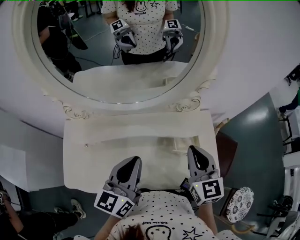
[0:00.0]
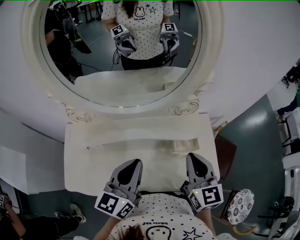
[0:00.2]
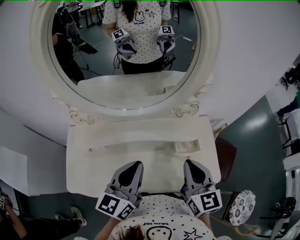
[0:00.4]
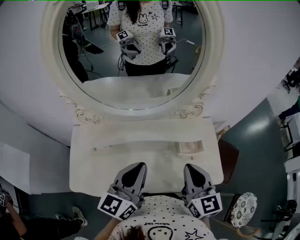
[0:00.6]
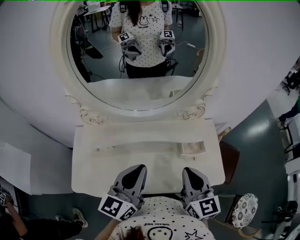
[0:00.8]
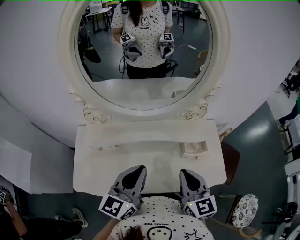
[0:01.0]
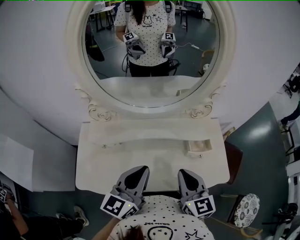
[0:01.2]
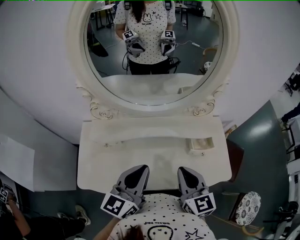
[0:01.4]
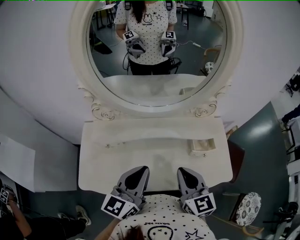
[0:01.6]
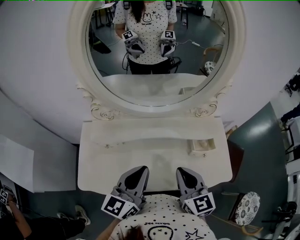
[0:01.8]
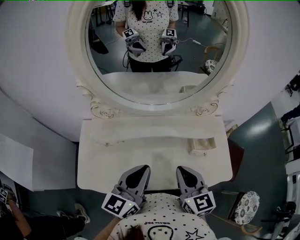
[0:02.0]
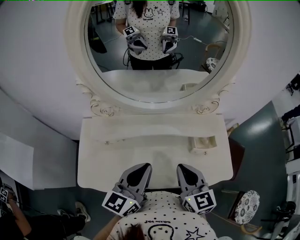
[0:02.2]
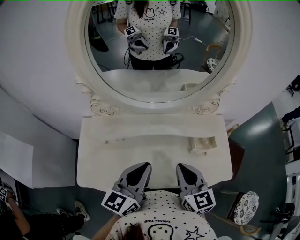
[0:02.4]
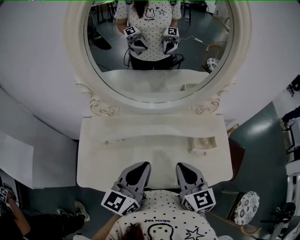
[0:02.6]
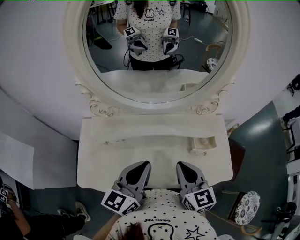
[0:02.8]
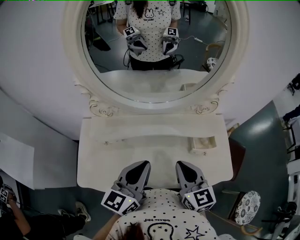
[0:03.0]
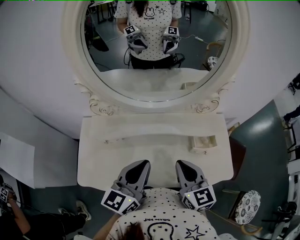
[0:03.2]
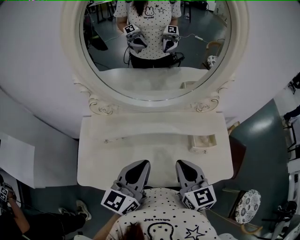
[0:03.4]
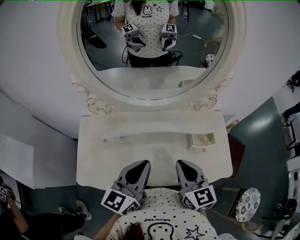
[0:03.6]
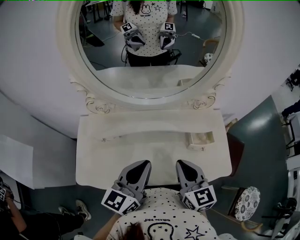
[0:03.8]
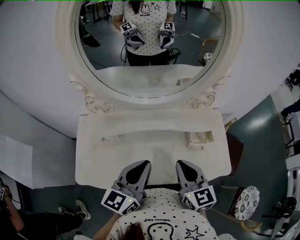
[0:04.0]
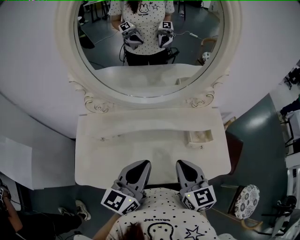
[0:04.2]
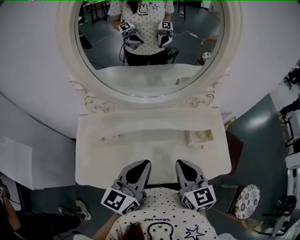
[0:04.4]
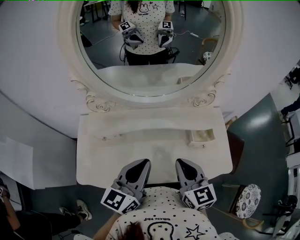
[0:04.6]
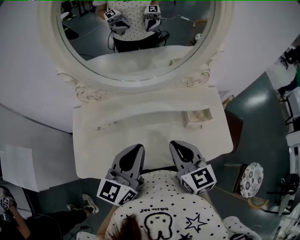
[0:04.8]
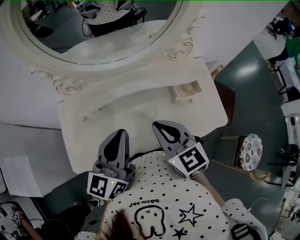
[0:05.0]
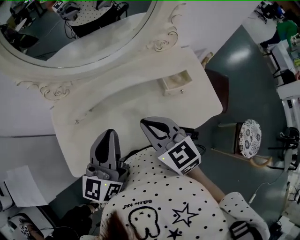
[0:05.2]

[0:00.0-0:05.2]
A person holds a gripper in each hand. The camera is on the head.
0:00.0 to 0:01.8: The left gripper goes about 10 cm to the left and backward; the right gripper heads to the left and backward, covering some 15 cm.
0:01.8 to 0:05.2: The grippers move only a little.

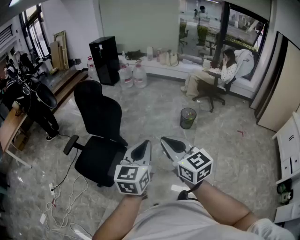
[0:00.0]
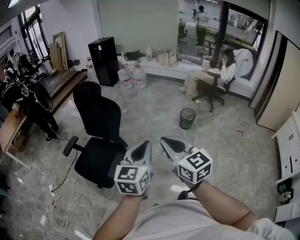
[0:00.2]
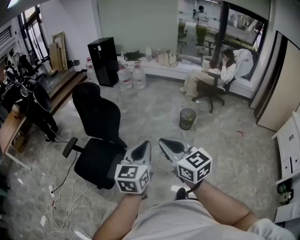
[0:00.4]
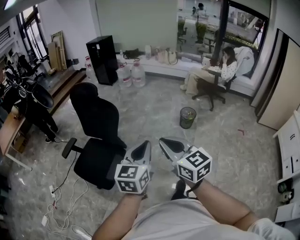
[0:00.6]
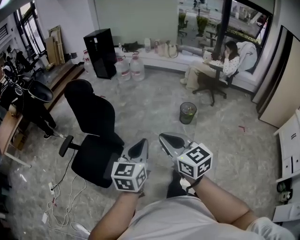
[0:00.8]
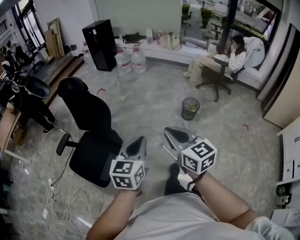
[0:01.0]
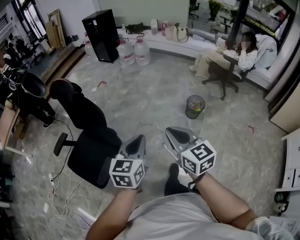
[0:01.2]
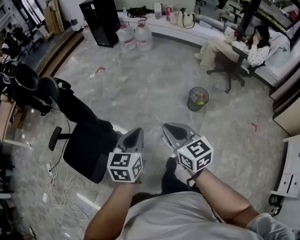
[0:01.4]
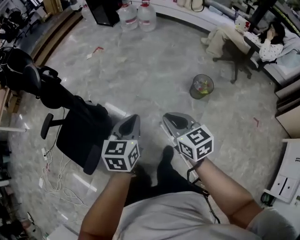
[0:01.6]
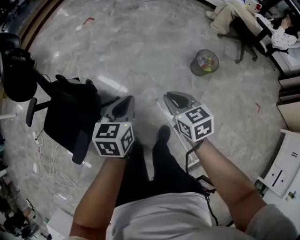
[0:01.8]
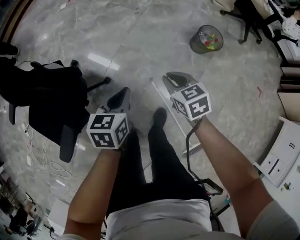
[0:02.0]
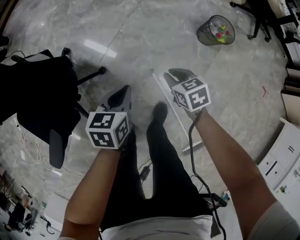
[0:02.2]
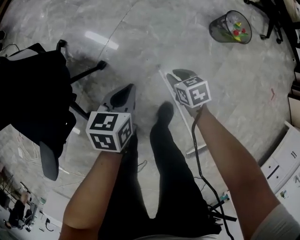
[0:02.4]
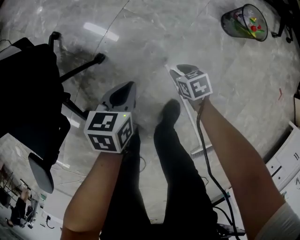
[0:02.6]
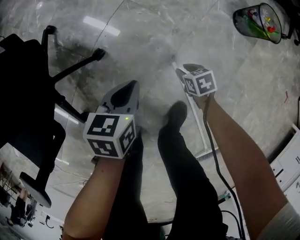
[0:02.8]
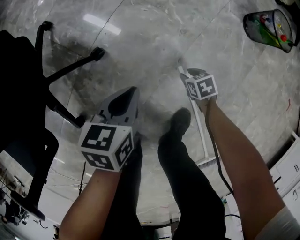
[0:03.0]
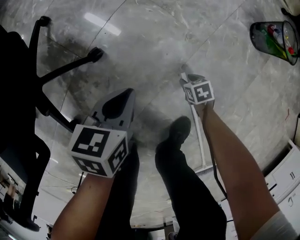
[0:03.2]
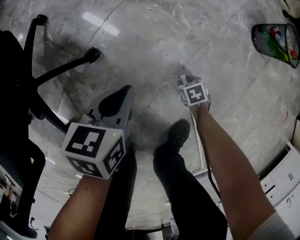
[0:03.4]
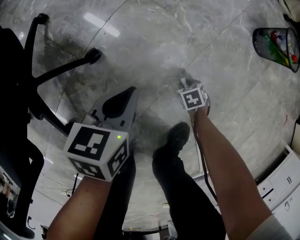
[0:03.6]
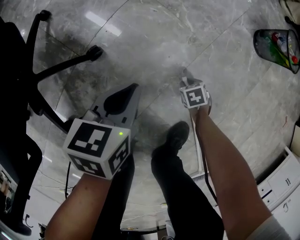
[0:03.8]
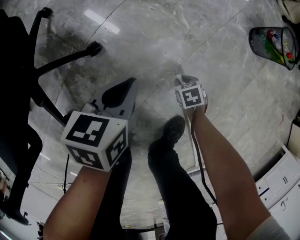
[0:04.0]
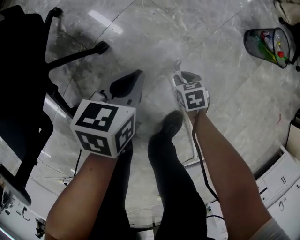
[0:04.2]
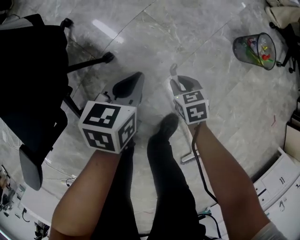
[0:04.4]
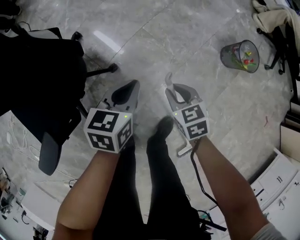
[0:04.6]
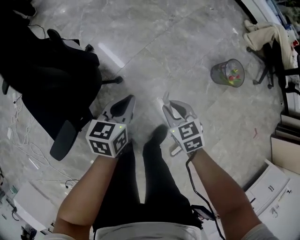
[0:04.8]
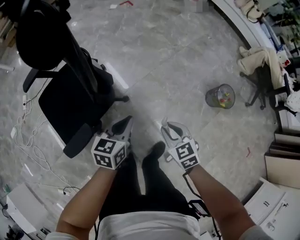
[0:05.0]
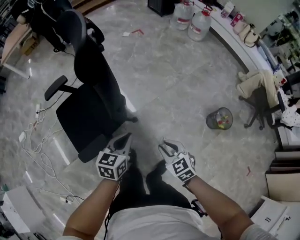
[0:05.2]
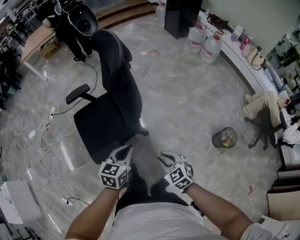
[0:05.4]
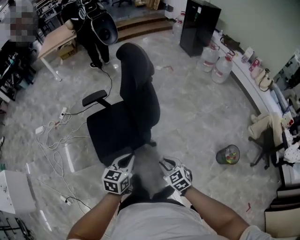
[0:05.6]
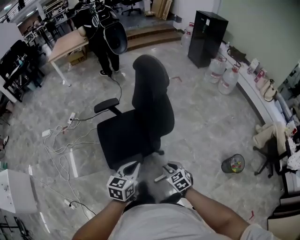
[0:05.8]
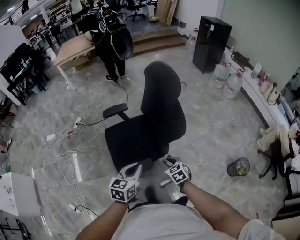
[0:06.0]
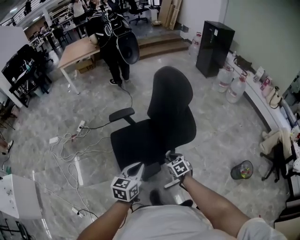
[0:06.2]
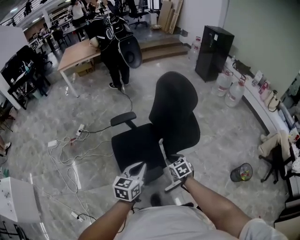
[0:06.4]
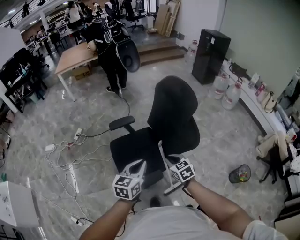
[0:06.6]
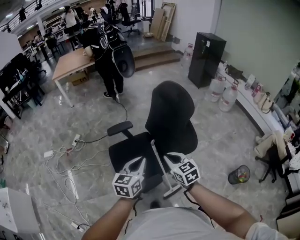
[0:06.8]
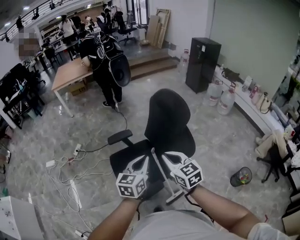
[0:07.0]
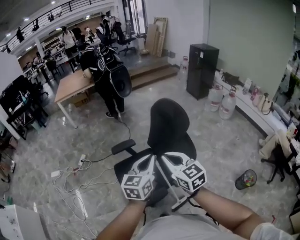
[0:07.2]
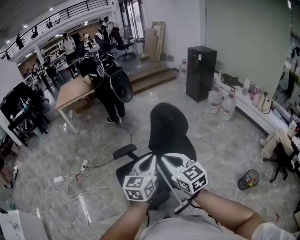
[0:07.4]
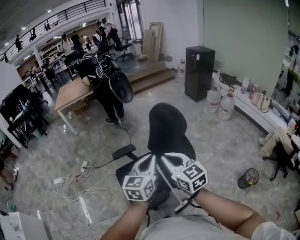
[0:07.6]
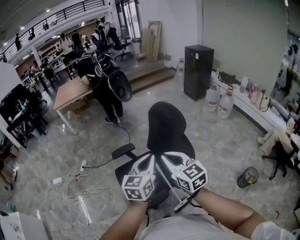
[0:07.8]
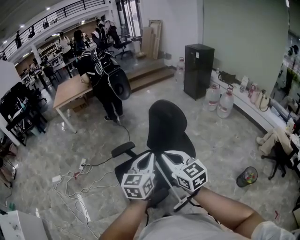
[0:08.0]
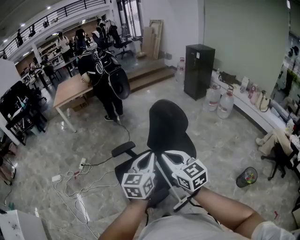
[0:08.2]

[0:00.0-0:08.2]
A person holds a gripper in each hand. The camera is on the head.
0:00.0 to 0:01.6: The two grippers travel together, forward and to the right, roughly 50 cm. The two grippers go approximately 25 cm downward. The left gripper turns by roughly 30 degrees; the right gripper changes its angle by approximately 20 degrees.
0:01.6 to 0:03.2: The two grippers go approximately 90 cm downward. The left gripper rotates about 30 degrees, while the right gripper points its fingers roughly 50 degrees further downward, and opens its fingers.
0:03.2 to 0:05.0: The grippers both shift upward by about 60 cm. The right gripper rotates about 40 degrees.
0:05.0 to 0:06.6: Both grippers move to the left and upward, roughly 50 cm. The left gripper turns by roughly 30 degrees.
0:06.6 to 0:08.2: The right gripper travels upward by roughly 30 cm, and swivels some 30 degrees. Meanwhile the left gripper moves upward and forward, some 15 cm.

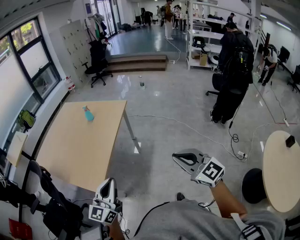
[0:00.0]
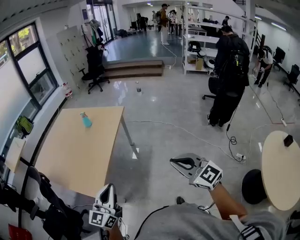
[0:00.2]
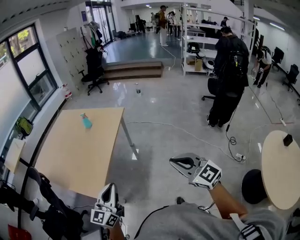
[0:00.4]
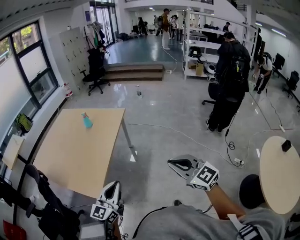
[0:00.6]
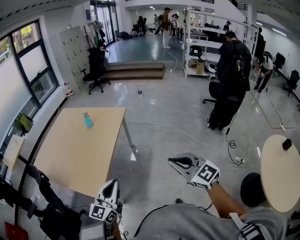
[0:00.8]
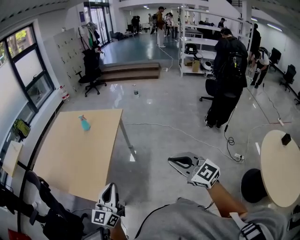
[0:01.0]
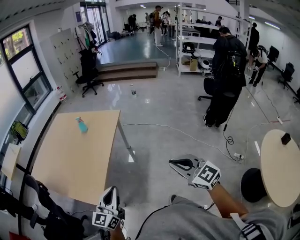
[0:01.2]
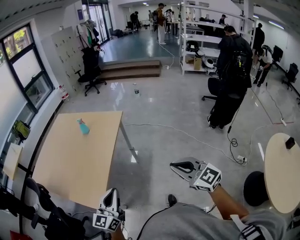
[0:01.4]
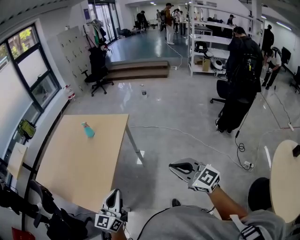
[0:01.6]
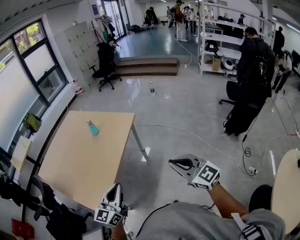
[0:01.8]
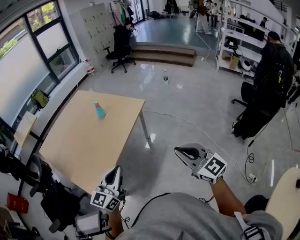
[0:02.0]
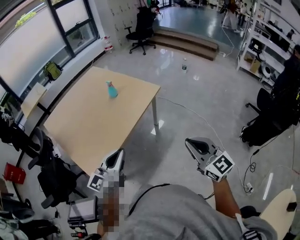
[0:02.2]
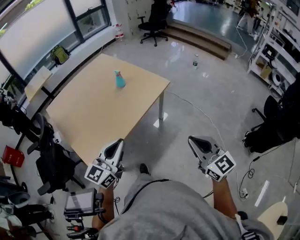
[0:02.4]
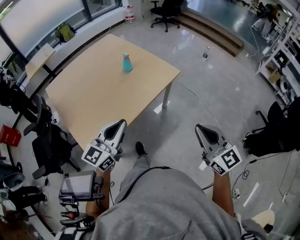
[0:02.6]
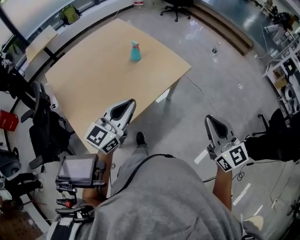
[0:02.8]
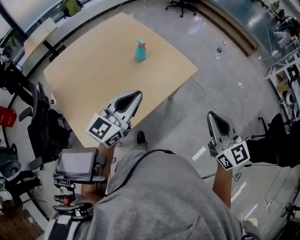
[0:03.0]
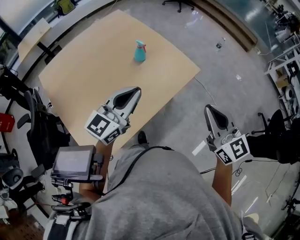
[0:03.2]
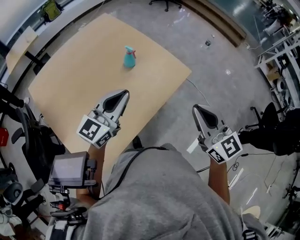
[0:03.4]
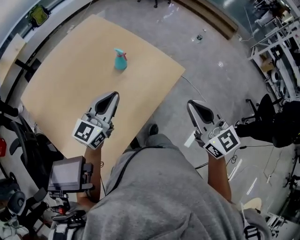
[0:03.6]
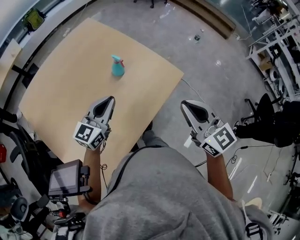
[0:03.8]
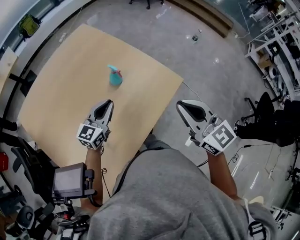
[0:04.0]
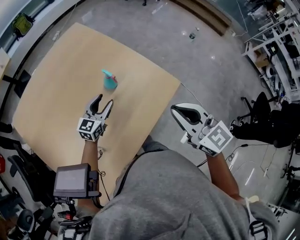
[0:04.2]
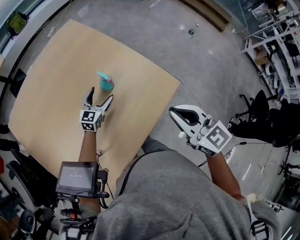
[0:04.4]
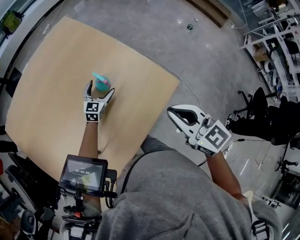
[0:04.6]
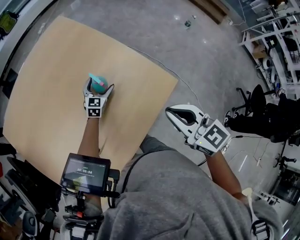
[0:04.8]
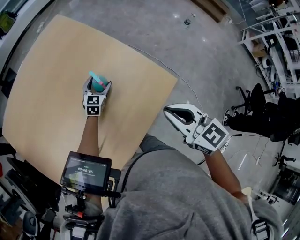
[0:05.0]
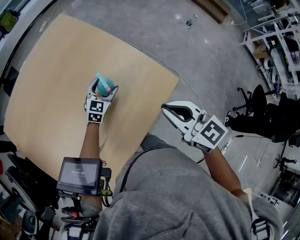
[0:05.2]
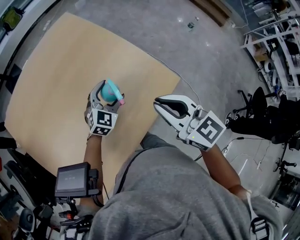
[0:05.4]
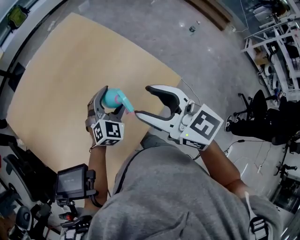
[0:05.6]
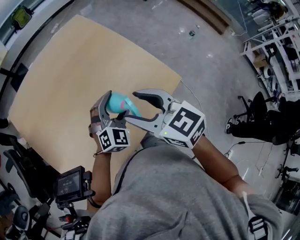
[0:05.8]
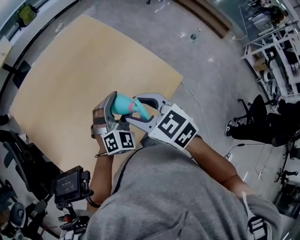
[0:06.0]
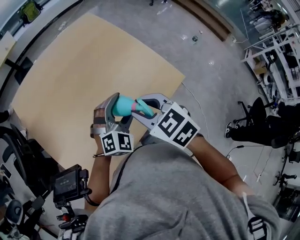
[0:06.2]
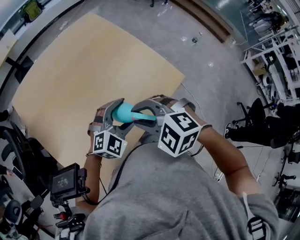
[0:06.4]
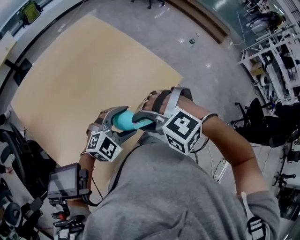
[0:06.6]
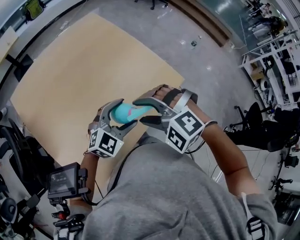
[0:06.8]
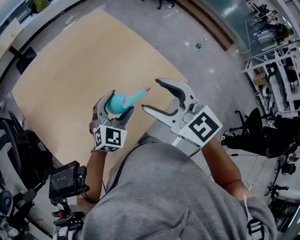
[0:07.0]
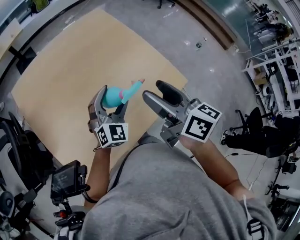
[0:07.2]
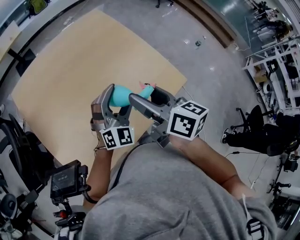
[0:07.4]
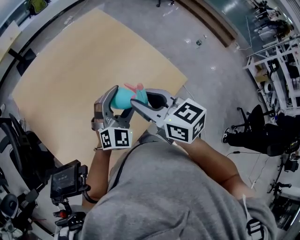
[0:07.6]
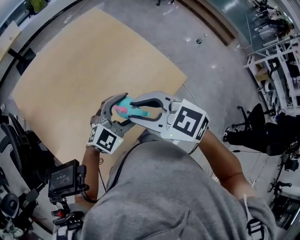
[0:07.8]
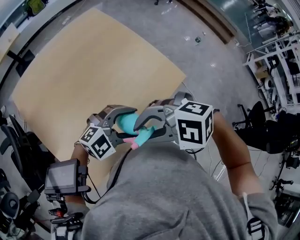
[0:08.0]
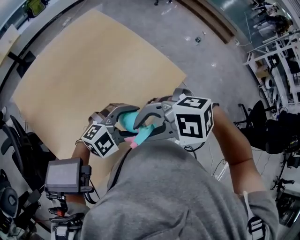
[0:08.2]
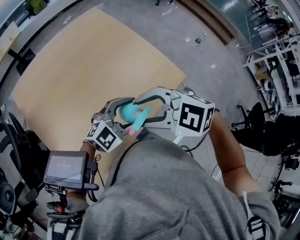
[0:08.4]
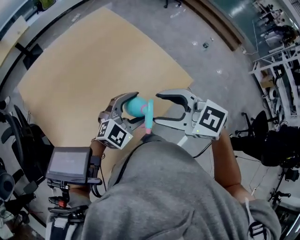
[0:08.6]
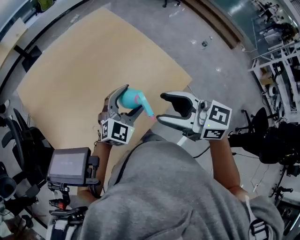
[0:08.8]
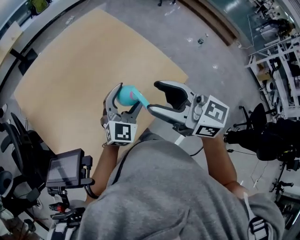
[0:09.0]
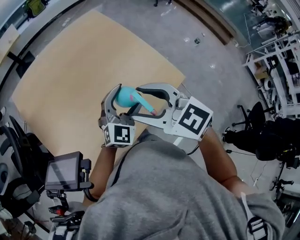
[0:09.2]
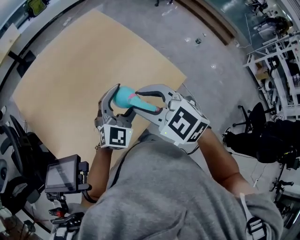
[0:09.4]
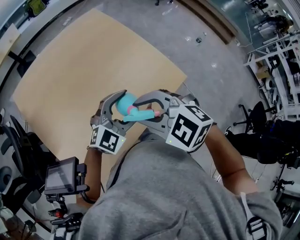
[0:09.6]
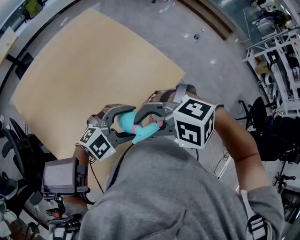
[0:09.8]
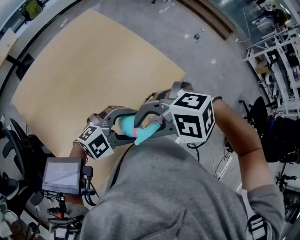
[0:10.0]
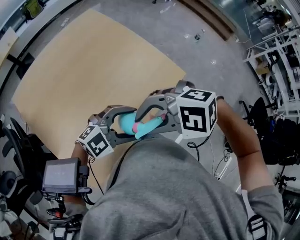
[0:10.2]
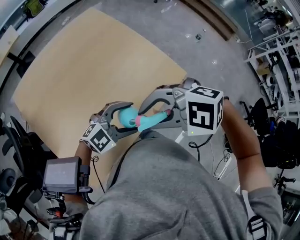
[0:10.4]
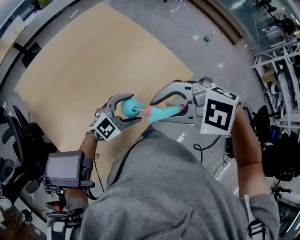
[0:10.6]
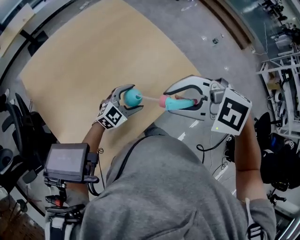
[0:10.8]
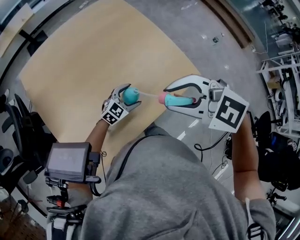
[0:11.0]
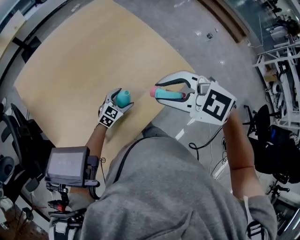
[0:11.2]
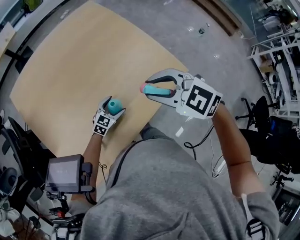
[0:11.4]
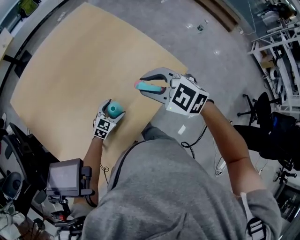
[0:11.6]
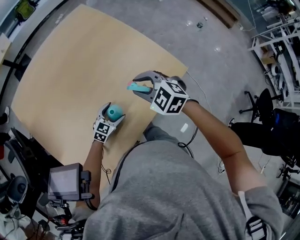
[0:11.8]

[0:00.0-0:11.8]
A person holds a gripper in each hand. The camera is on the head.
0:00.0 to 0:01.4: Both grippers travel together forward, roughly 5 cm.
0:01.4 to 0:03.0: Both grippers are carried forward, roughly 50 cm.
0:03.0 to 0:04.4: The right gripper heads forward, covering approximately 30 cm. Meanwhile the left gripper travels forward and downward by roughly 50 cm, rotates some 20 degrees, and opens up.
0:04.4 to 0:06.0: The right gripper shifts some 15 cm to the left, changes its angle by about 20 degrees, and opens, while the left gripper moves backward and upward, some 25 cm, and rotates around the line of its fingers by about 40 degrees, clockwise from behind.
0:06.0 to 0:07.4: The right gripper turns by approximately 40 degrees, and closes and opens again.
0:07.4 to 0:08.8: The left gripper changes its angle by about 20 degrees. The right gripper changes its angle by approximately 30 degrees, and closes, then reopens.
0:08.8 to 0:10.4: The right gripper tilts its fingers approximately 30 degrees downward, and closes, while the left gripper changes place by about 10 cm, and turns by approximately 40 degrees.
0:10.4 to 0:11.8: The right gripper shifts by some 25 cm, and turns by roughly 40 degrees. Meanwhile the left gripper shifts some 25 cm downward, and rotates some 40 degrees.
